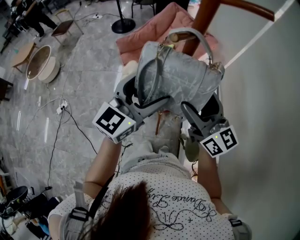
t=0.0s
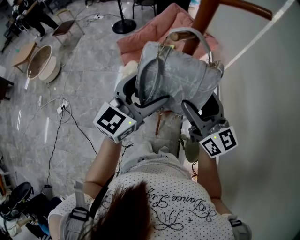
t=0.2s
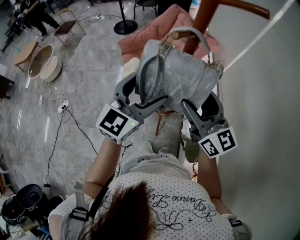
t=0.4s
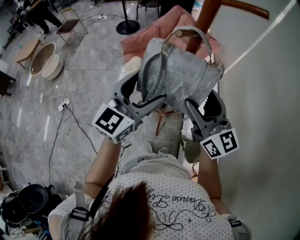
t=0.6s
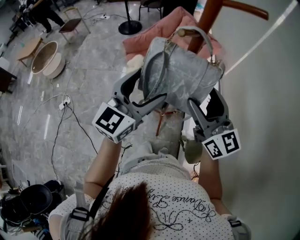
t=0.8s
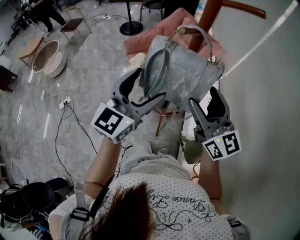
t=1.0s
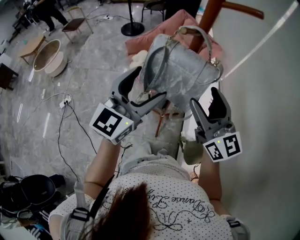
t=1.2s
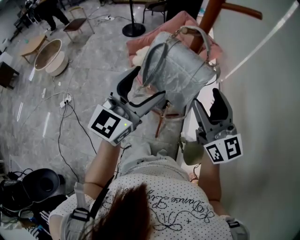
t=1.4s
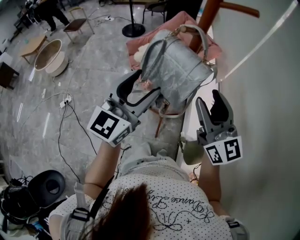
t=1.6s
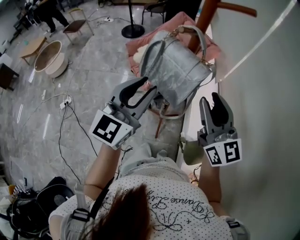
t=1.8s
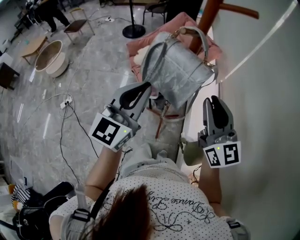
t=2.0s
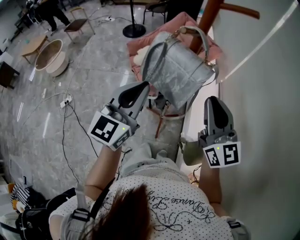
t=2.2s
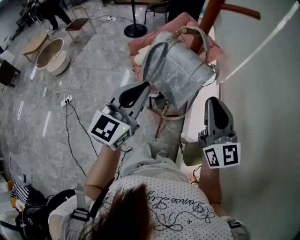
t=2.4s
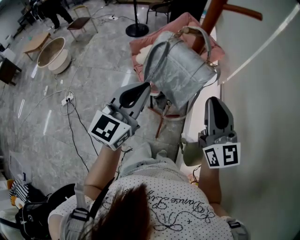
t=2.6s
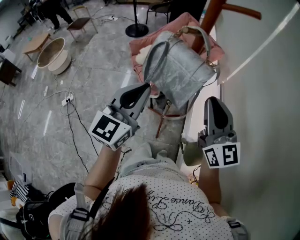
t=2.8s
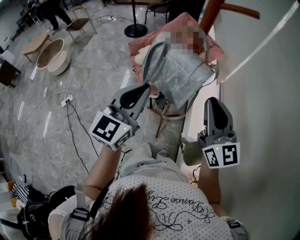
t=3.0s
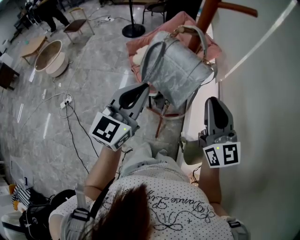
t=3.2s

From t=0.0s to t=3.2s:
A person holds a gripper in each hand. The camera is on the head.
From t=0.0s to t=1.6s: Both grippers travel together backward, roughly 5 cm. The right gripper closes.
From t=1.6s to t=3.2s: The left gripper closes. Meanwhile the right gripper closes its fingers.

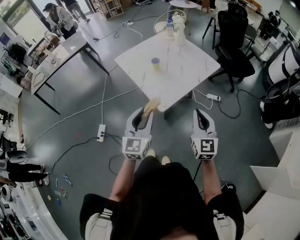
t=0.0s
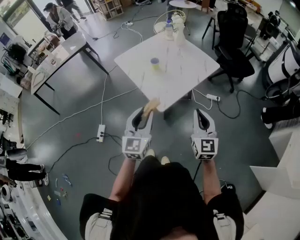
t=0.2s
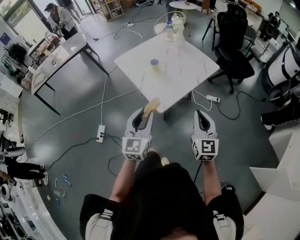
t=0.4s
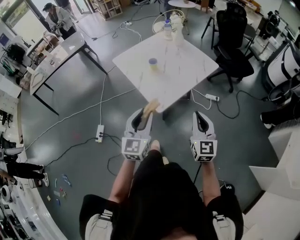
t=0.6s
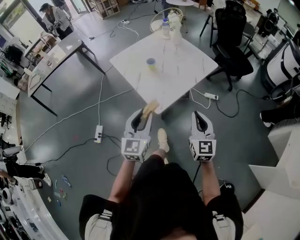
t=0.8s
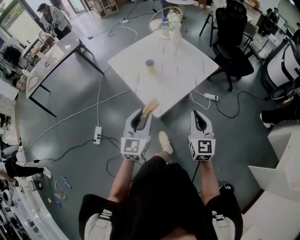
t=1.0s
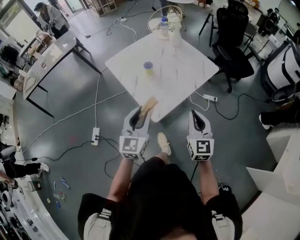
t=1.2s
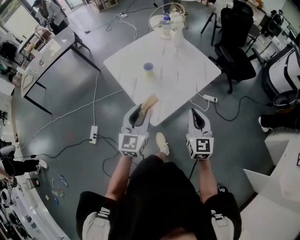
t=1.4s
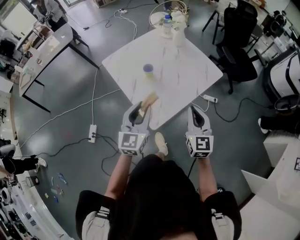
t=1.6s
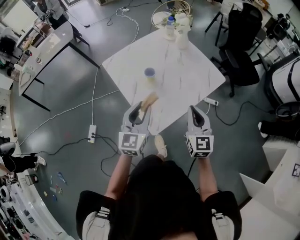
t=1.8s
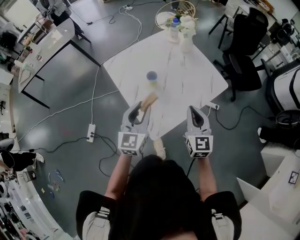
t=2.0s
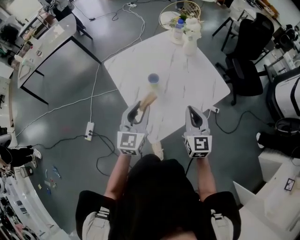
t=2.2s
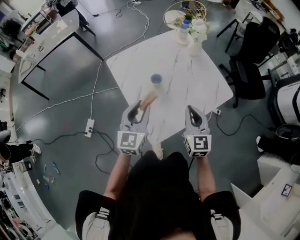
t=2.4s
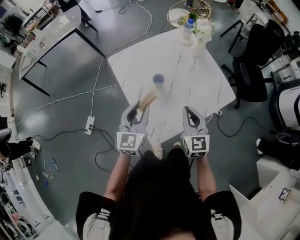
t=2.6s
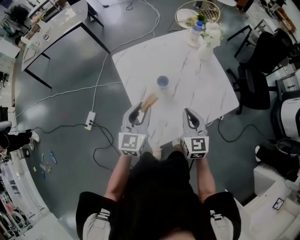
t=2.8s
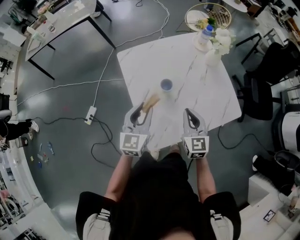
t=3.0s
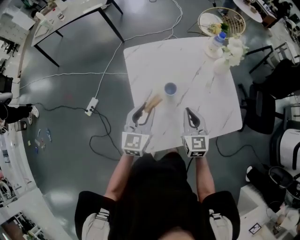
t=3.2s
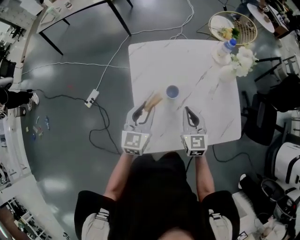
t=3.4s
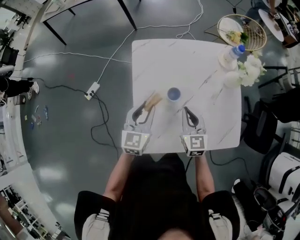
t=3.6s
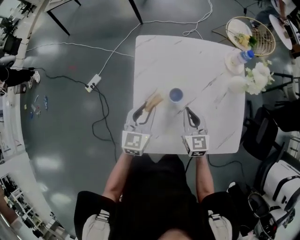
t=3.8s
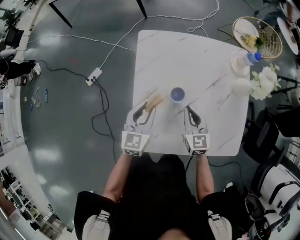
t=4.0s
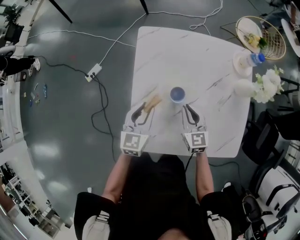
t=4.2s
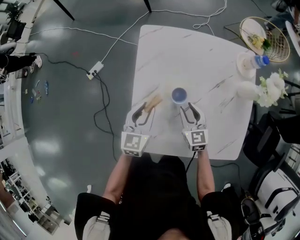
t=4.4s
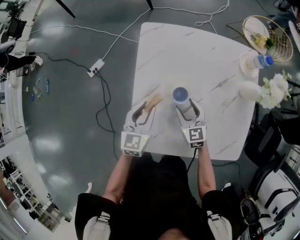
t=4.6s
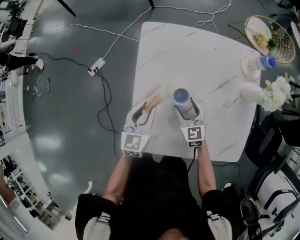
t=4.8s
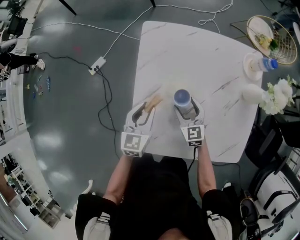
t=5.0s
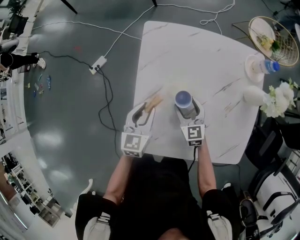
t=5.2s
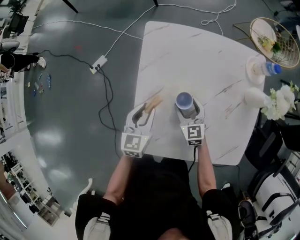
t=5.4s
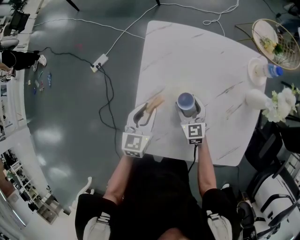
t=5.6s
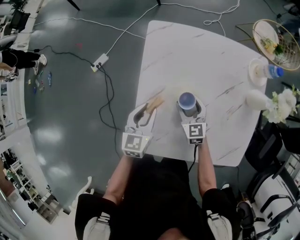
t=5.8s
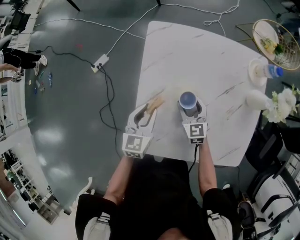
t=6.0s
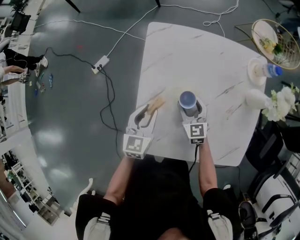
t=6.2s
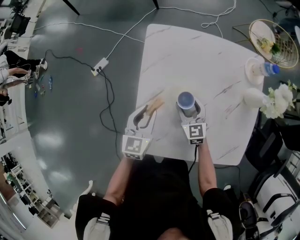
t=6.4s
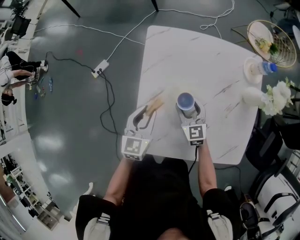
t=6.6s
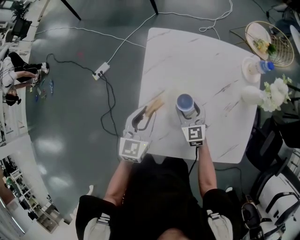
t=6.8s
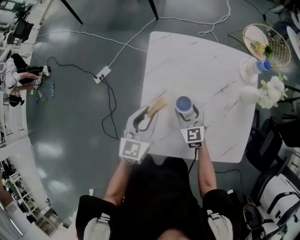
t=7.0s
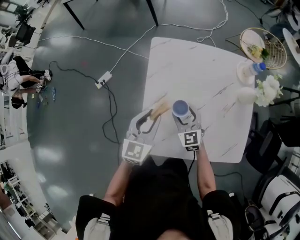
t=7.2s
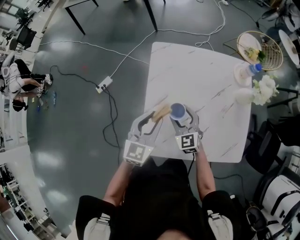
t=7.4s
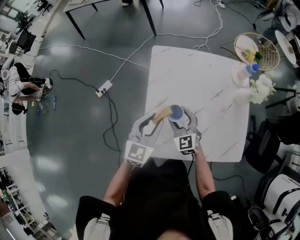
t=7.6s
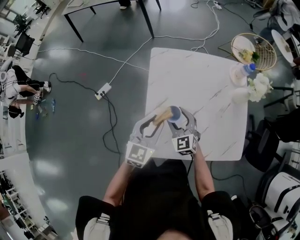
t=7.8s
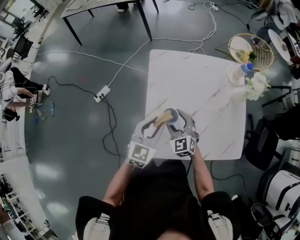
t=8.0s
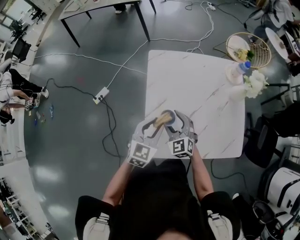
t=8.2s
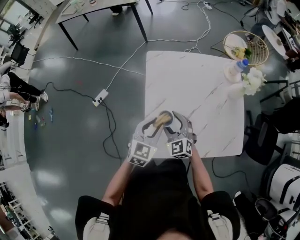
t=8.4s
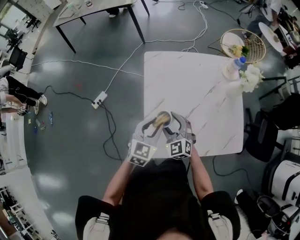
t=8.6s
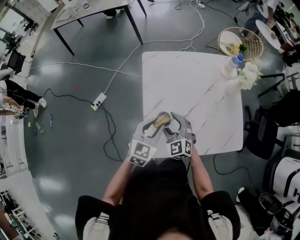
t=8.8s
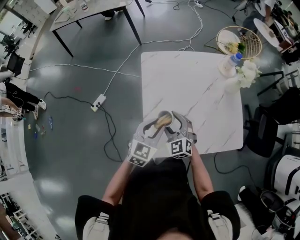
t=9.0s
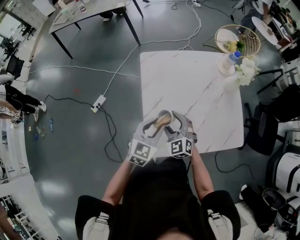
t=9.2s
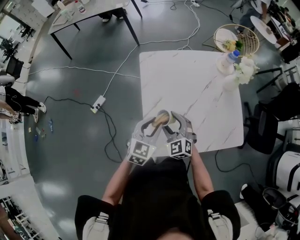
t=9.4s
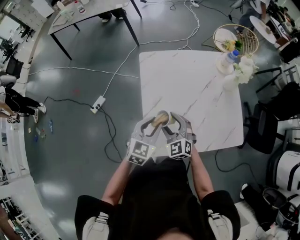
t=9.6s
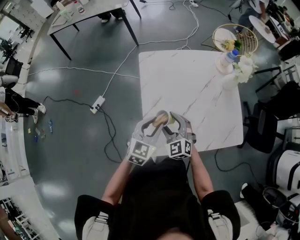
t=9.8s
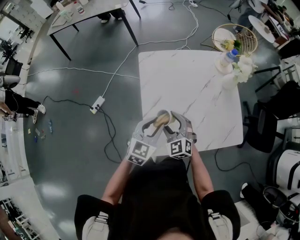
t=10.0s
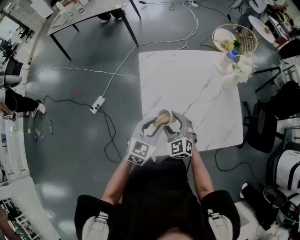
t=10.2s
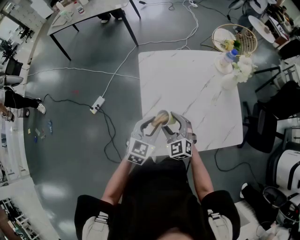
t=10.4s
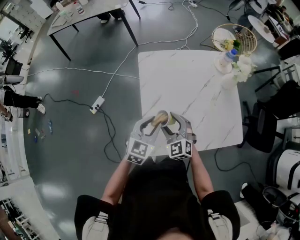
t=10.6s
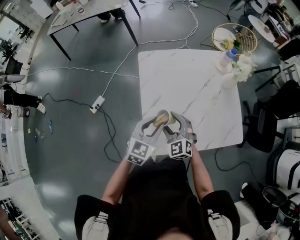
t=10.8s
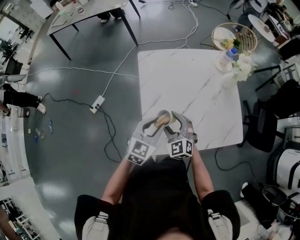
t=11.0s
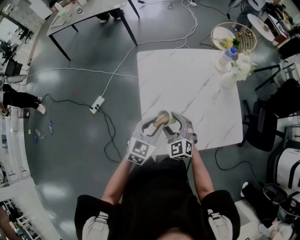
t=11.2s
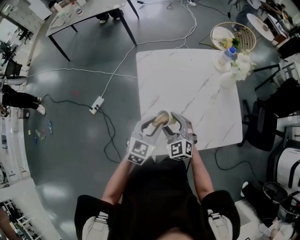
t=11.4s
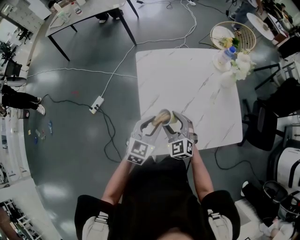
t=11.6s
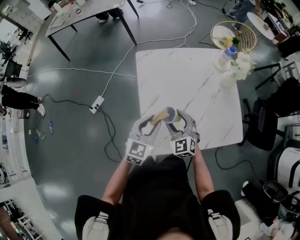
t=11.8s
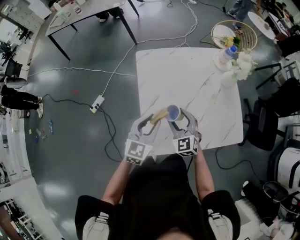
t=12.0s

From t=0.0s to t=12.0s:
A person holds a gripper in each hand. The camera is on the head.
From t=0.0s to t=1.6s: The two grippers go about 20 cm forward.
From t=1.6s to t=3.0s: Both grippers move forward, roughly 20 cm. The right gripper turns by about 20 degrees.
From t=3.0s to t=4.4s: Both grippers travel together downward, some 15 cm. The left gripper swivels some 30 degrees; the right gripper turns by roughly 30 degrees, and opens.
From t=4.4s to t=6.0s: The right gripper goes about 5 cm forward, and opens.
From t=6.0s to t=7.6s: The left gripper travels upward by about 15 cm, and swivels about 20 degrees; the right gripper shifts approximately 15 cm upward, to the left and backward.
From t=7.6s to t=9.0s: The right gripper shifts by approximately 5 cm.
From t=9.0s to t=10.4s: There are only small adjustments of the grippers.
From t=10.4s to t=12.0s: The right gripper moves roughly 5 cm.

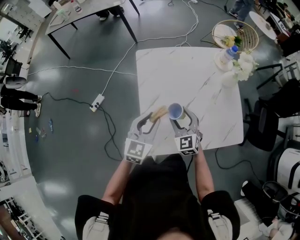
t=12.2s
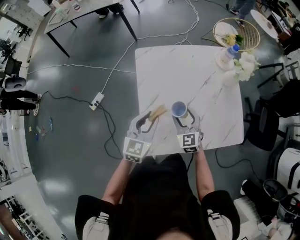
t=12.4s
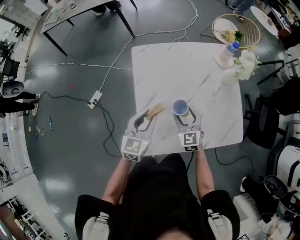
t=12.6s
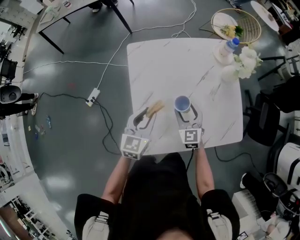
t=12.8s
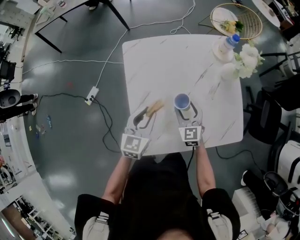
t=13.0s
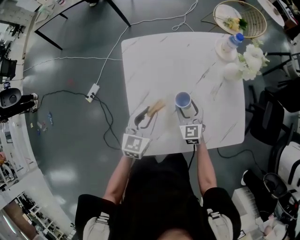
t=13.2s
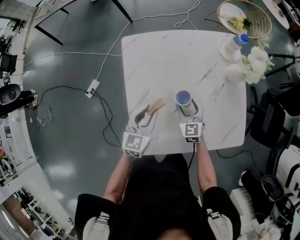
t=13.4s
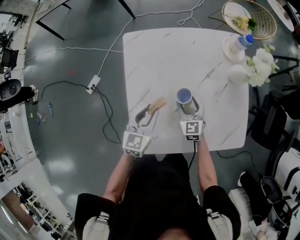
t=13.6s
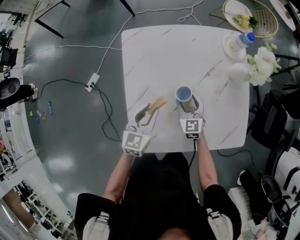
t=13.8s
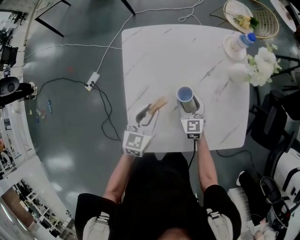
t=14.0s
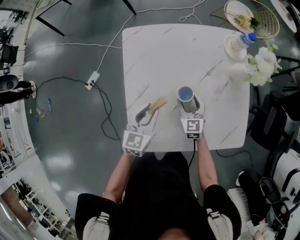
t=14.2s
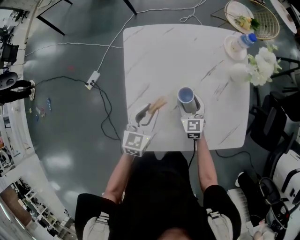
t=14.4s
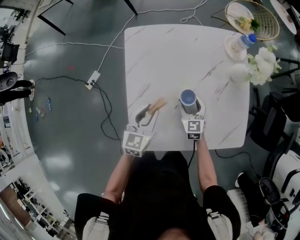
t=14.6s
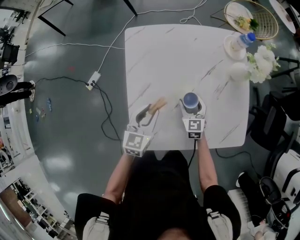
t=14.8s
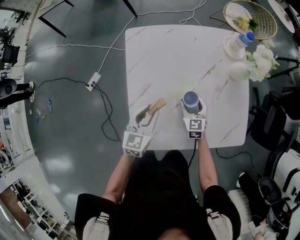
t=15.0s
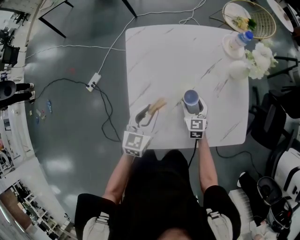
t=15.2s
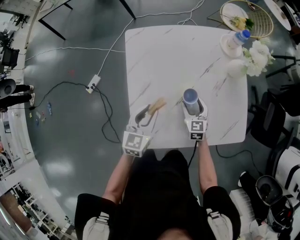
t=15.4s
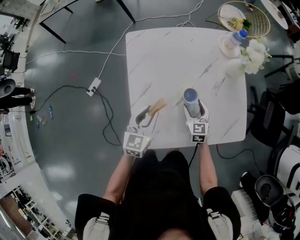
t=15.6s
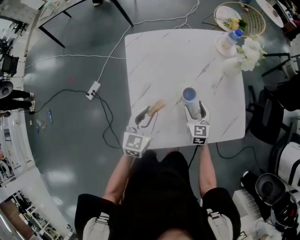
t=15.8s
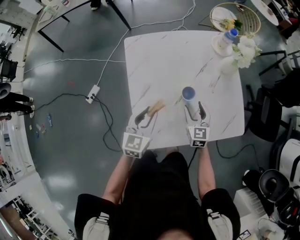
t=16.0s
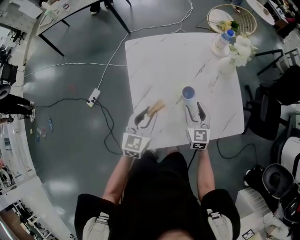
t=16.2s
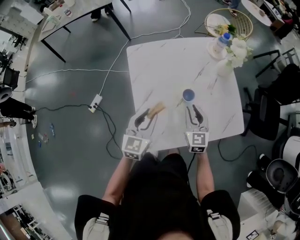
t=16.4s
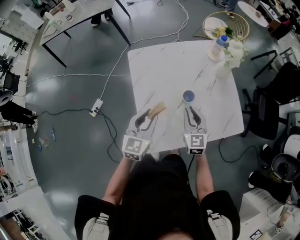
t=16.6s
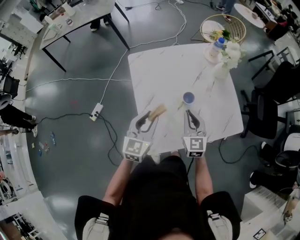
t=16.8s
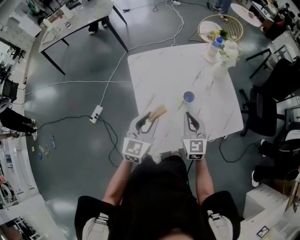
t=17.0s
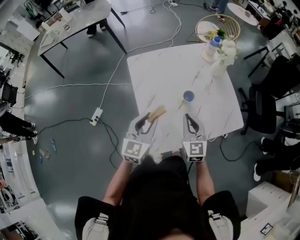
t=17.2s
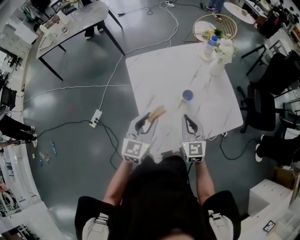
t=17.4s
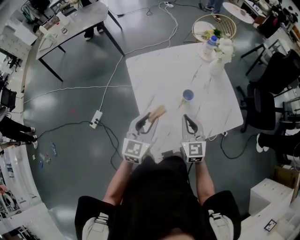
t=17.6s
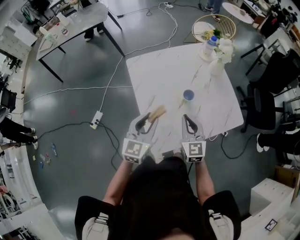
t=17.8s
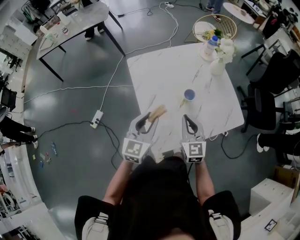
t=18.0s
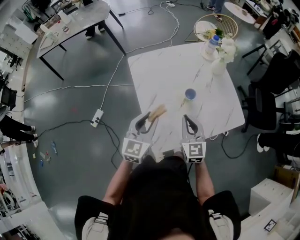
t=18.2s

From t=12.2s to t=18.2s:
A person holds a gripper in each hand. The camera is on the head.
From t=12.2s to t=13.8s: The left gripper heads downward and forward, covering roughly 15 cm. Meanwhile the right gripper is displaced downward, forward and to the right by roughly 20 cm.
From t=13.8s to t=15.2s: The grippers stay close to where they were, moving slightly.
From t=15.2s to t=16.6s: The right gripper goes approximately 20 cm upward and backward, and closes its fingers, while the left gripper goes roughly 10 cm upward.
From t=16.6s to t=18.2s: The right gripper shifts roughly 5 cm backward. Meanwhile the left gripper moves approximately 5 cm.

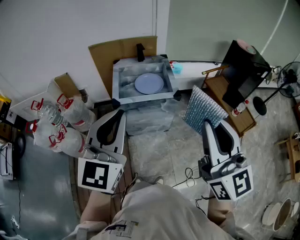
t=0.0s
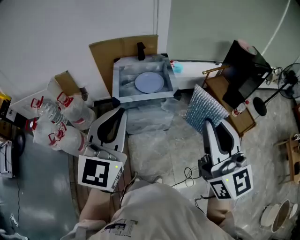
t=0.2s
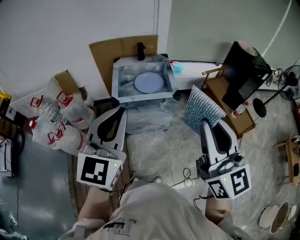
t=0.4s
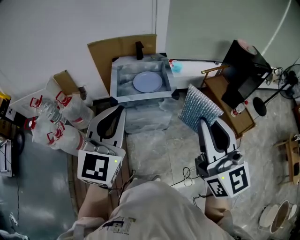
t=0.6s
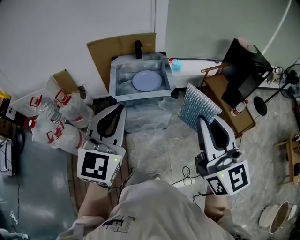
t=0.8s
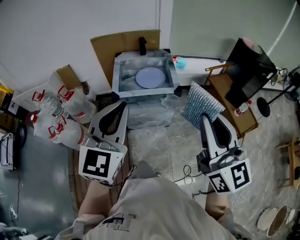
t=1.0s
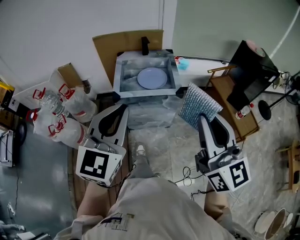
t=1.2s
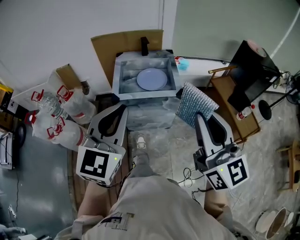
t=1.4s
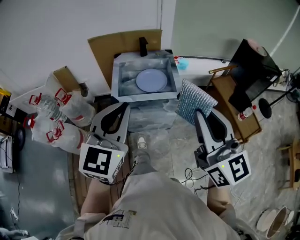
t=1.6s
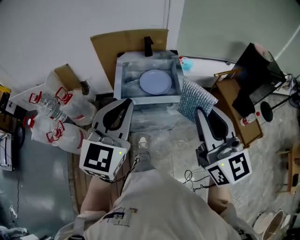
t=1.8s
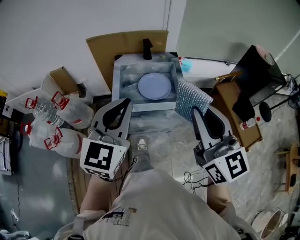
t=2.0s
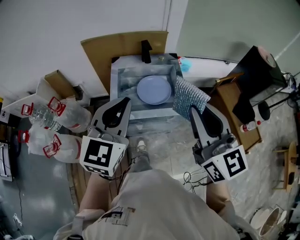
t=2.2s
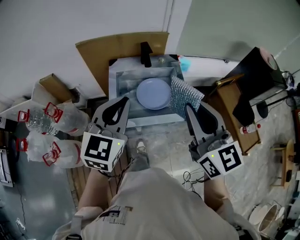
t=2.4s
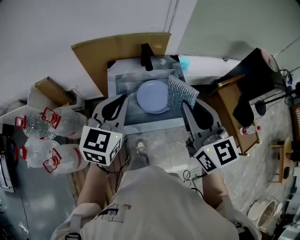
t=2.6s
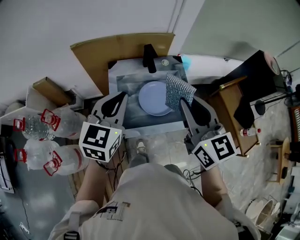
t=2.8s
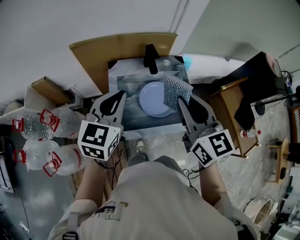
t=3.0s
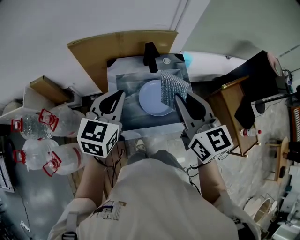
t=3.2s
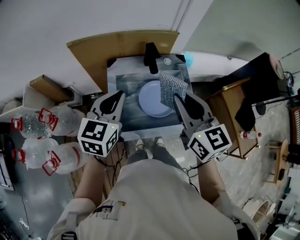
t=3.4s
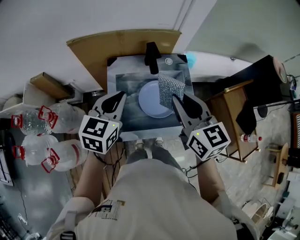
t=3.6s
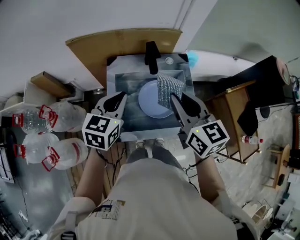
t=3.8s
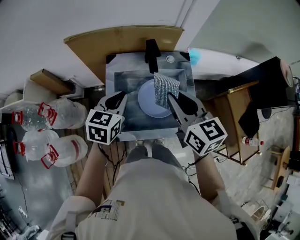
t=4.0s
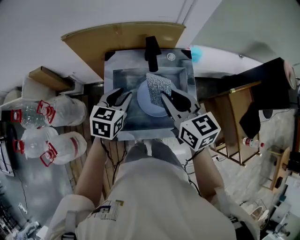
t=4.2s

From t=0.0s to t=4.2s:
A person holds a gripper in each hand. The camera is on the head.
From t=0.0s to t=1.4s: Both grippers travel together forward, roughly 5 cm.
From t=1.4s to t=2.8s: The pair of grippers is taken forward, about 40 cm.
From t=2.8s to t=4.2s: Both grippers move downward and forward, approximately 20 cm. The left gripper turns by some 20 degrees, and opens up. Meanwhile the right gripper turns by roughly 20 degrees.
